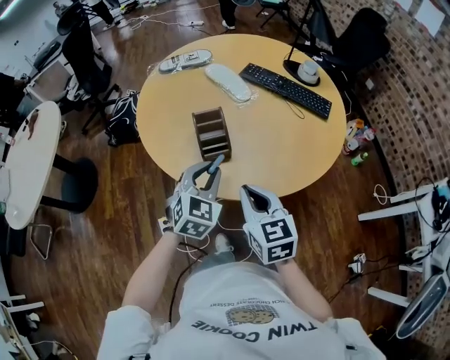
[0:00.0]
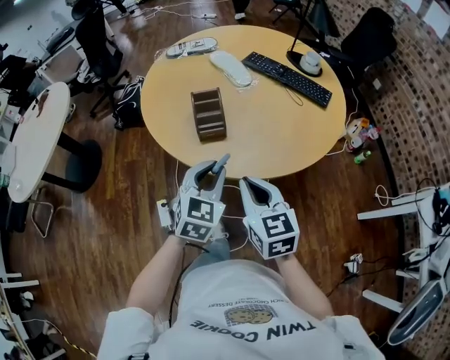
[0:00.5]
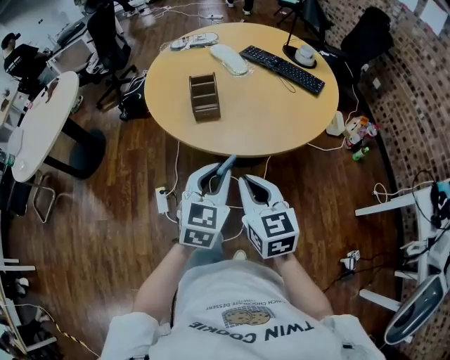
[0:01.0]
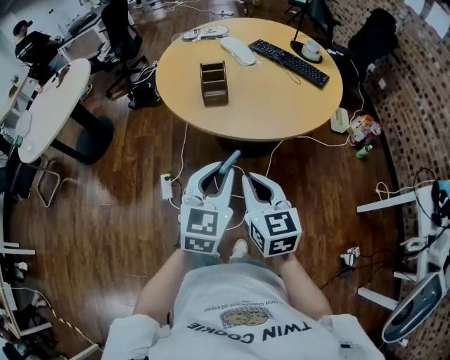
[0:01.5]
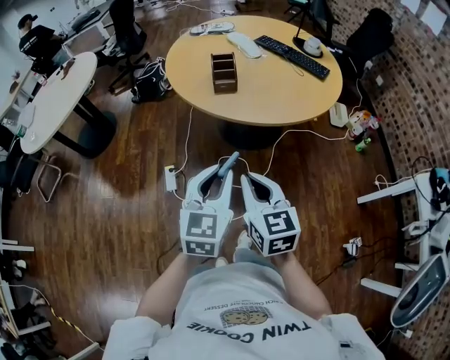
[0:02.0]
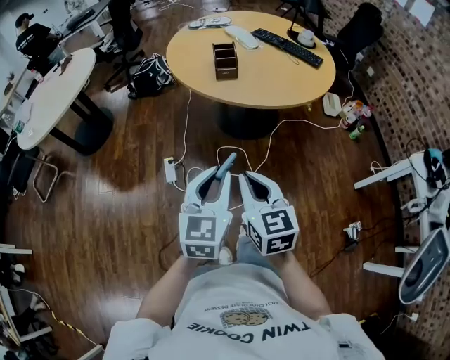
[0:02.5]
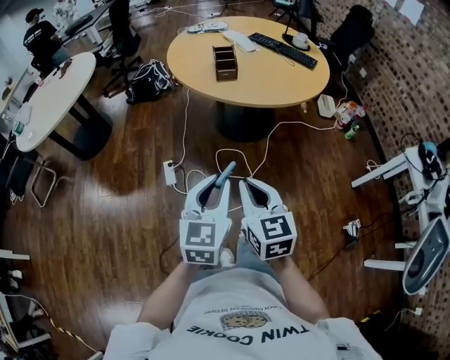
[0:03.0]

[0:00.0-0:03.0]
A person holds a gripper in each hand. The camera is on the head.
0:00.0 to 0:01.5: The two grippers go roughly 25 cm backward. The left gripper swivels some 20 degrees.
0:01.5 to 0:03.0: Both grippers move backward and to the left, some 25 cm.

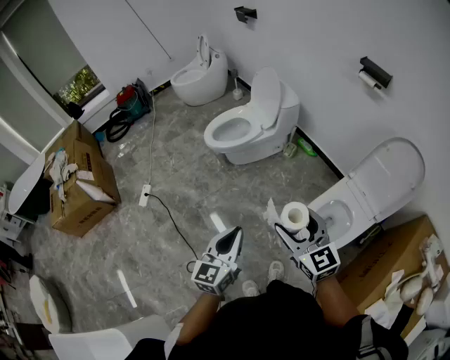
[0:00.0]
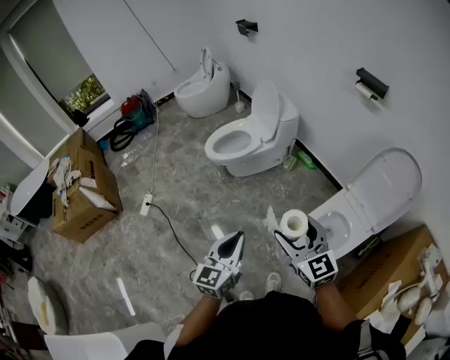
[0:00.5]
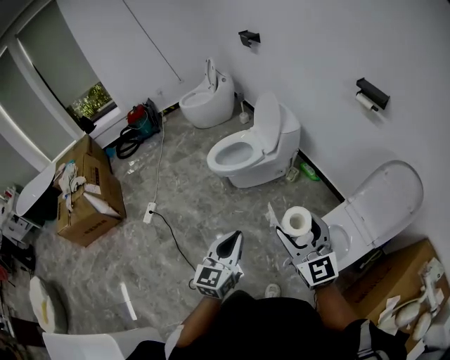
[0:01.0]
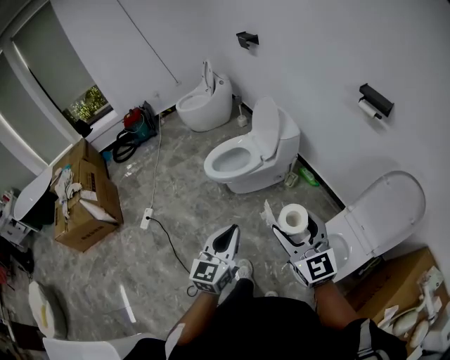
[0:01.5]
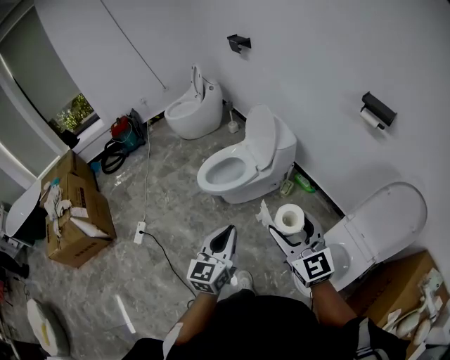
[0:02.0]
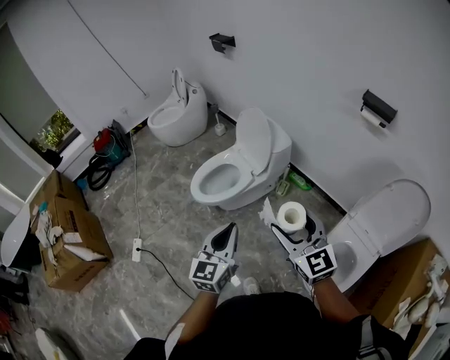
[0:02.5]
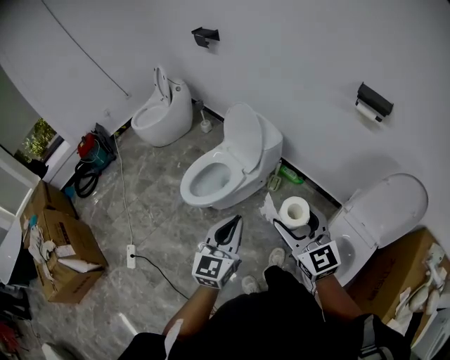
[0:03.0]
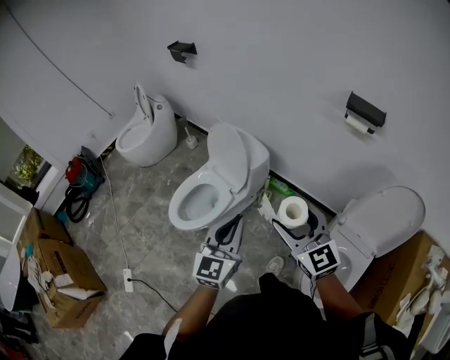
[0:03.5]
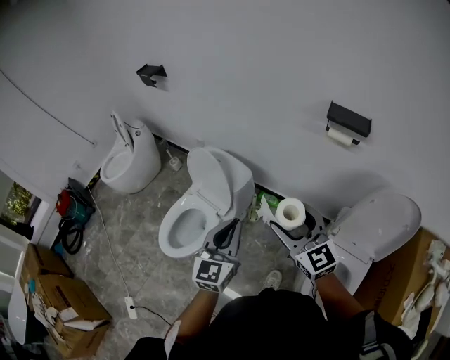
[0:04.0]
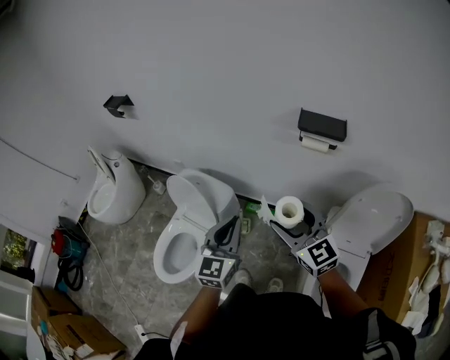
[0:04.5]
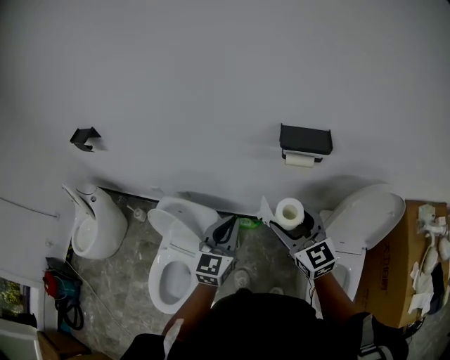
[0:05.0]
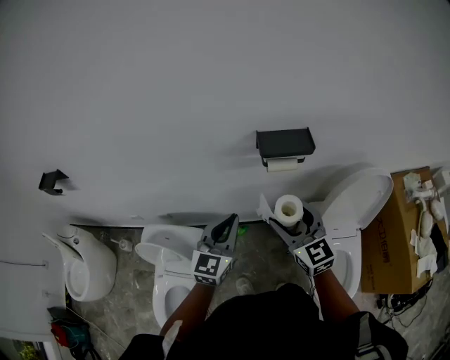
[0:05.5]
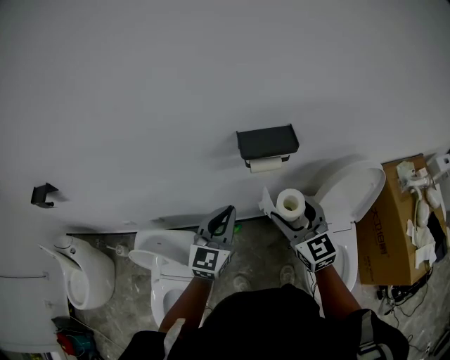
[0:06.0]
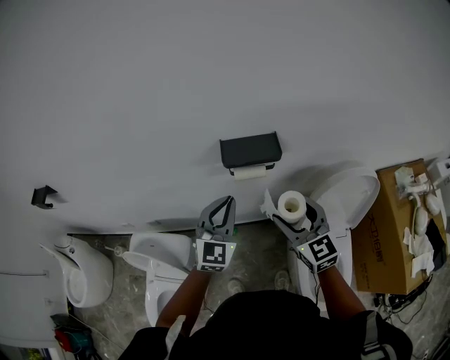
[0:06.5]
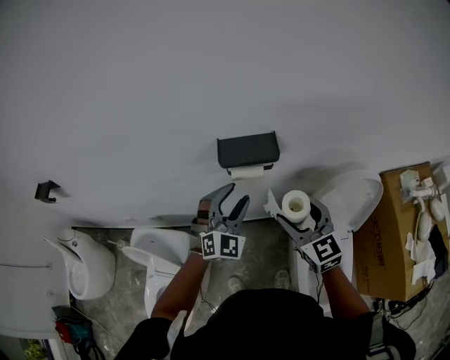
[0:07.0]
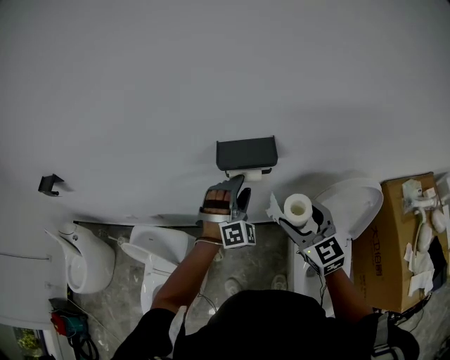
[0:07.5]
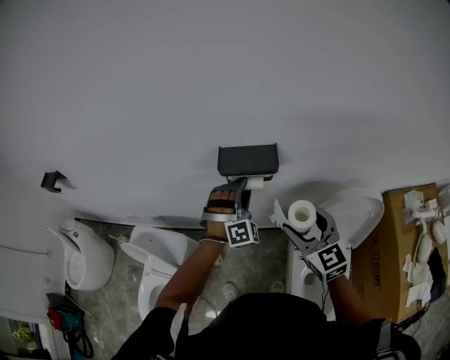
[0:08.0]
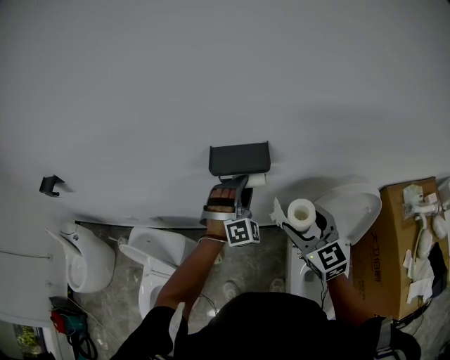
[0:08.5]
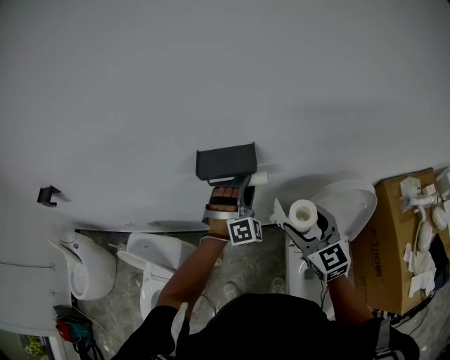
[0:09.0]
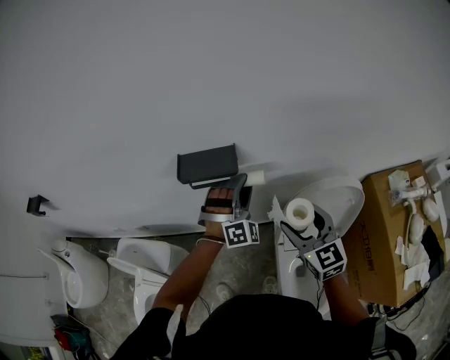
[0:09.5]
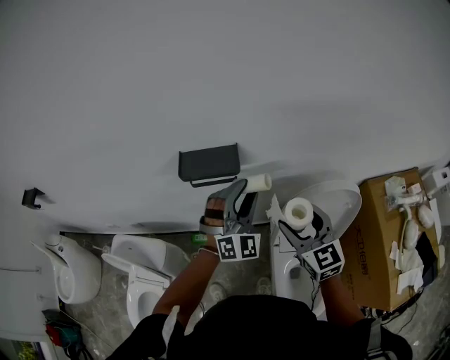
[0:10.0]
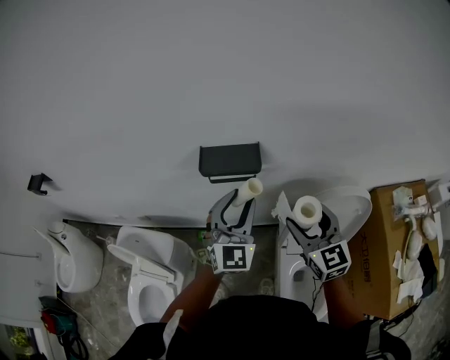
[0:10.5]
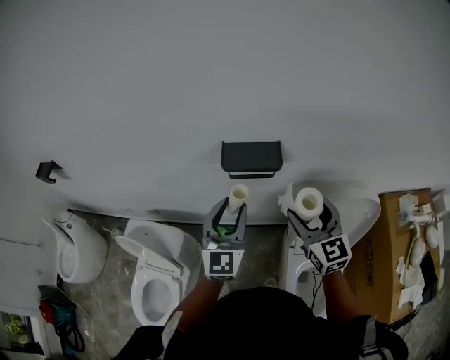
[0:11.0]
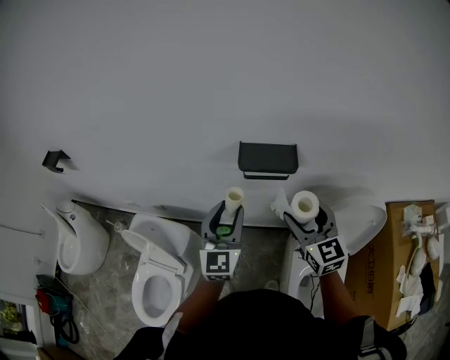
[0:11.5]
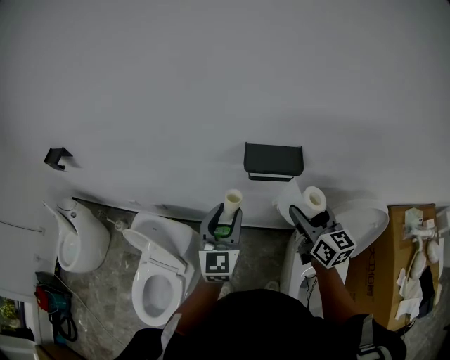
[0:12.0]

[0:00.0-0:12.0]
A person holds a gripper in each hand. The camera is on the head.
0:00.0 to 0:02.0: Both grippers travel together forward, some 20 cm.
0:02.0 to 0:04.0: The two grippers go about 35 cm forward. The right gripper rotates roughly 20 degrees. The left gripper swivels about 30 degrees.
0:04.0 to 0:06.0: The right gripper ends up approximately 25 cm from where it was, and rotates approximately 40 degrees; the left gripper changes place by about 35 cm, and swivels some 40 degrees.
0:06.0 to 0:08.0: The left gripper is displaced to the right and forward by about 20 cm, twists approximately 70 degrees clockwise, seen from behind, and opens up; the right gripper moves to the right, about 10 cm.
0:08.0 to 0:10.0: The left gripper goes about 15 cm to the right, upward and backward, and swivels roughly 30 degrees; the right gripper shifts approximately 10 cm to the right.
0:10.0 to 0:12.0: The right gripper shifts about 15 cm to the left and forward, and swivels approximately 30 degrees. The left gripper travels to the left by some 25 cm, and twists roughly 50 degrees counterclockwise, seen from behind.

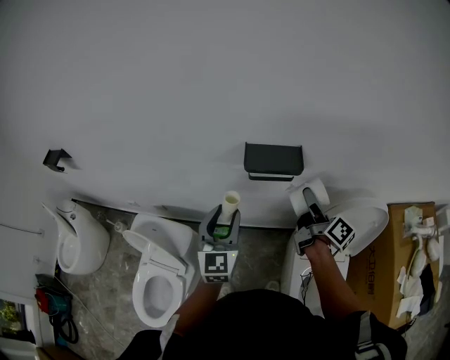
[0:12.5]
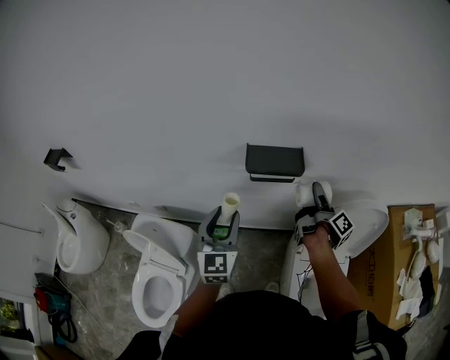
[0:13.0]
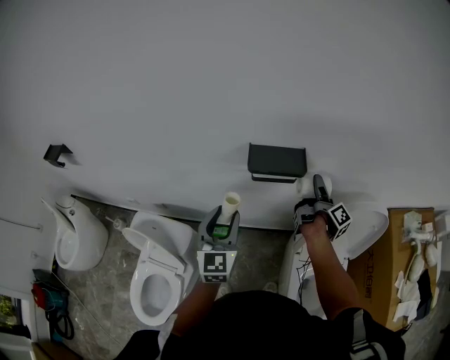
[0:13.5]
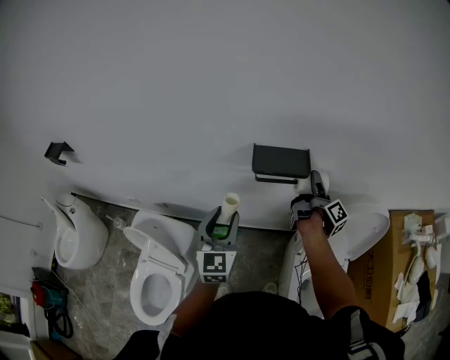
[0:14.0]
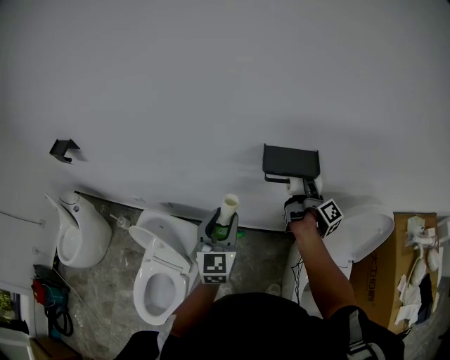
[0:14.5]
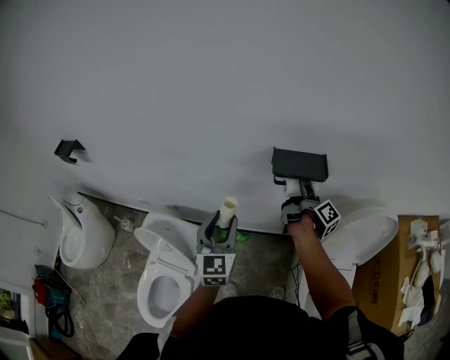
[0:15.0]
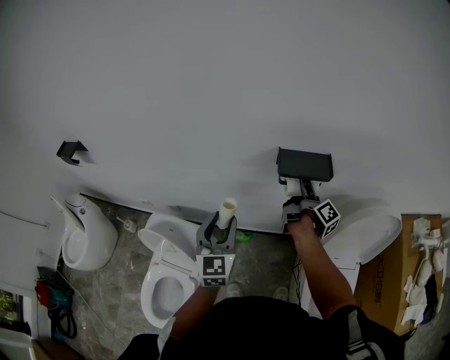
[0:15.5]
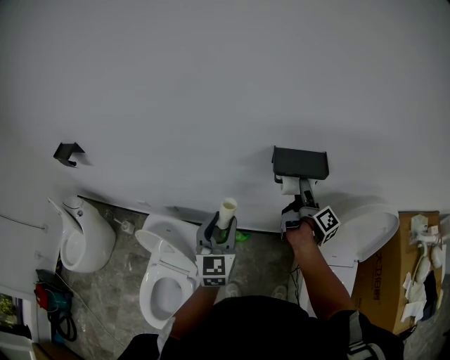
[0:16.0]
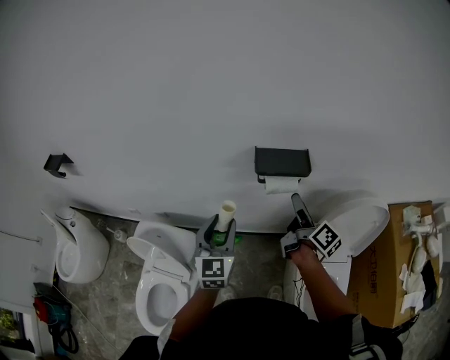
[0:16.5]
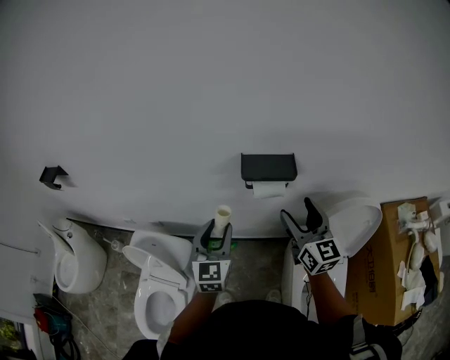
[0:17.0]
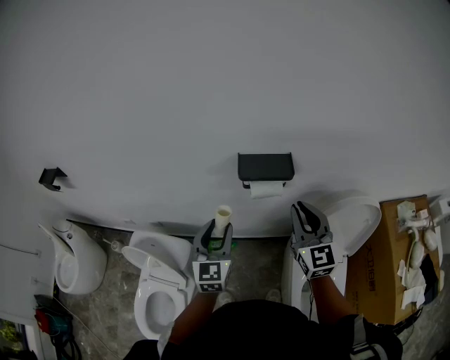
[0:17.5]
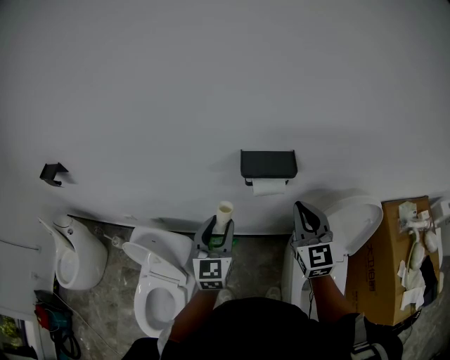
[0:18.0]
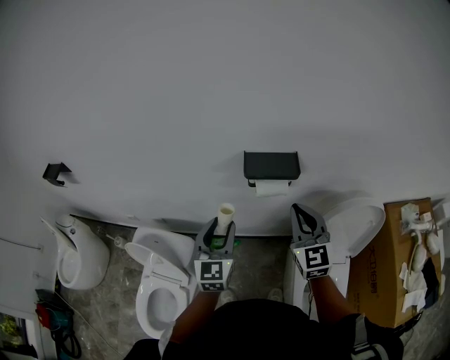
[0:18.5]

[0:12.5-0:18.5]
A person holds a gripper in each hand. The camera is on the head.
0:12.5 to 0:14.5: The left gripper heads to the left, covering about 5 cm; the right gripper heads forward, covering some 5 cm, and rotates some 30 degrees.
0:14.5 to 0:16.5: The right gripper moves backward, roughly 10 cm, and changes its angle by some 30 degrees.
0:16.5 to 0:18.5: The right gripper shifts approximately 5 cm upward, rotates around the line of its fingers by some 80 degrees, counterclockwise from behind, and closes its fingers.

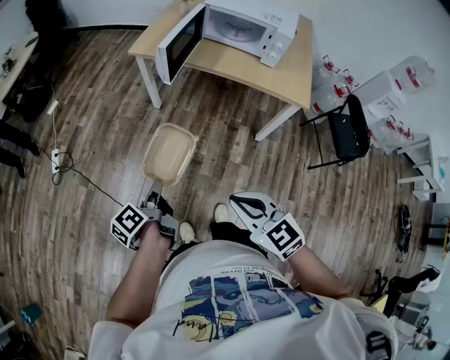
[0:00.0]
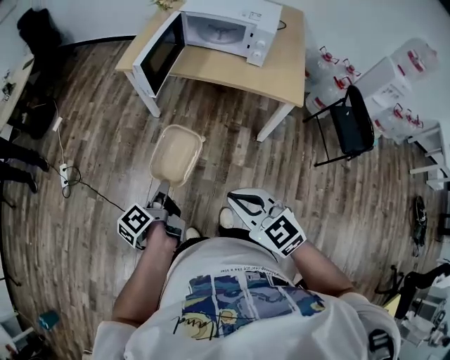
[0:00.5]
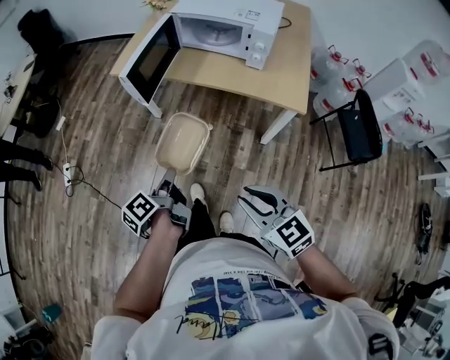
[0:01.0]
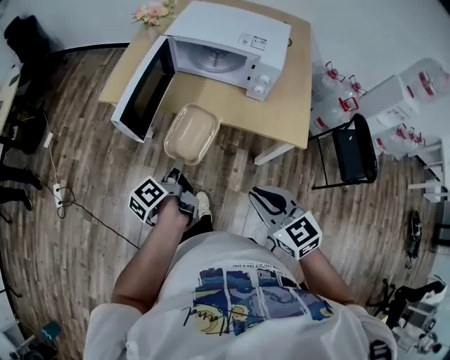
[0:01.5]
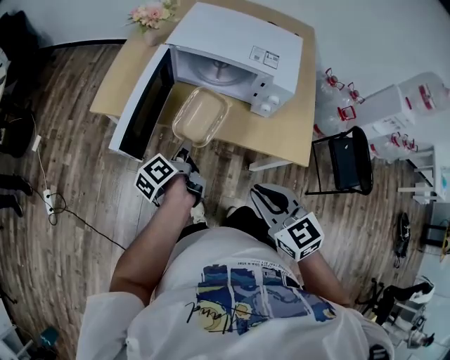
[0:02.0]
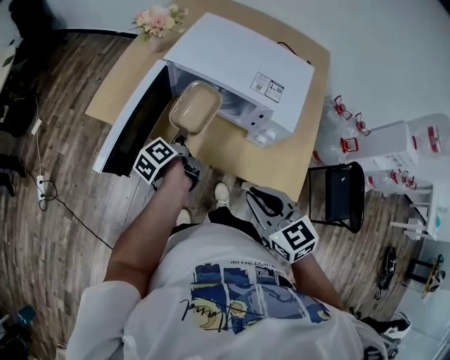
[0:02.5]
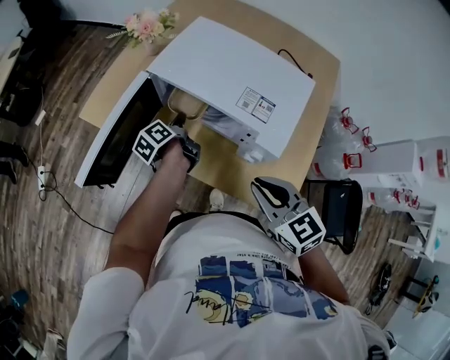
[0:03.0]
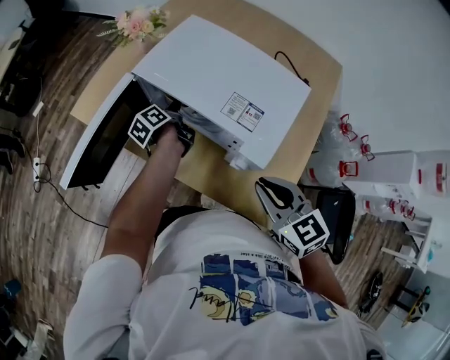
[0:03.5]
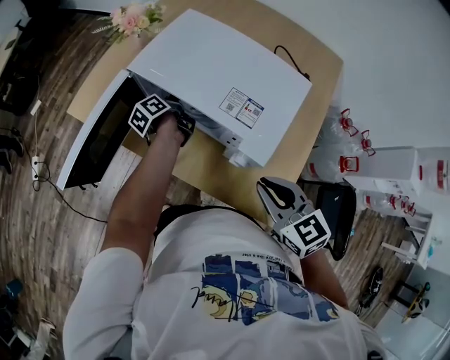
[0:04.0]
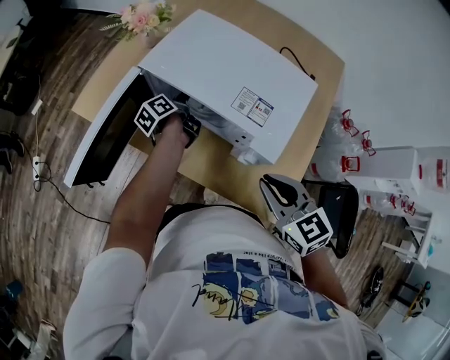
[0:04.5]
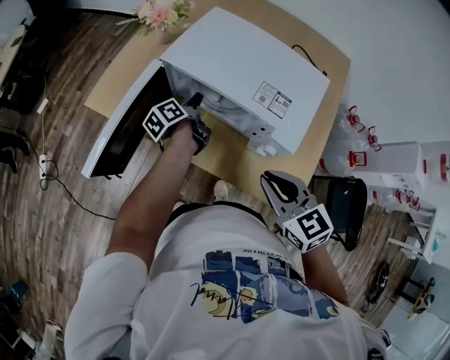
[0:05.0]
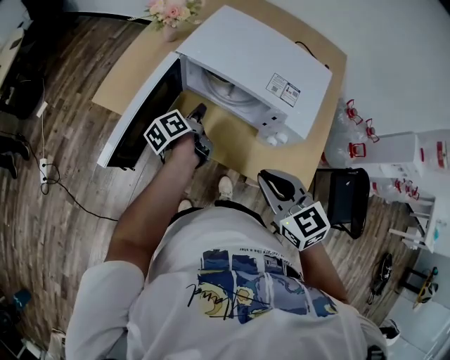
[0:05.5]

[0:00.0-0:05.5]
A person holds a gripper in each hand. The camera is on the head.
0:00.0 to 0:02.0: The right gripper ends up approximately 40 cm from where it was.
0:02.0 to 0:03.5: The right gripper shifts by some 30 cm.
0:03.5 to 0:05.5: The right gripper ends up approximately 15 cm from where it was.
